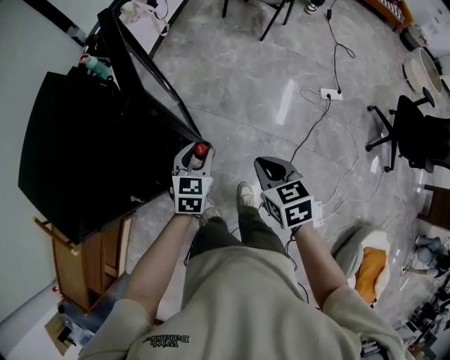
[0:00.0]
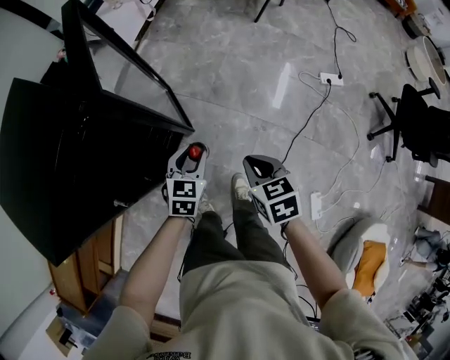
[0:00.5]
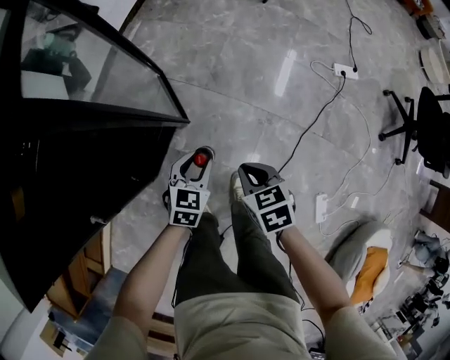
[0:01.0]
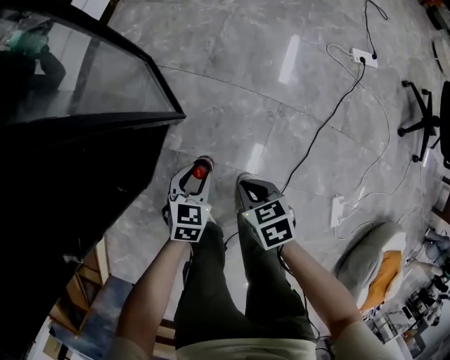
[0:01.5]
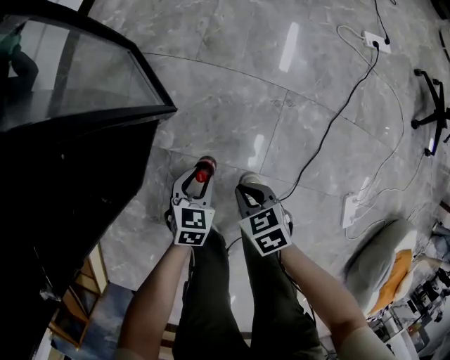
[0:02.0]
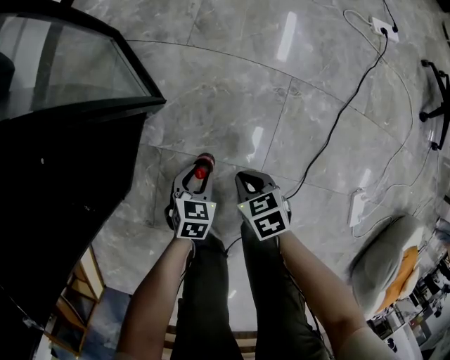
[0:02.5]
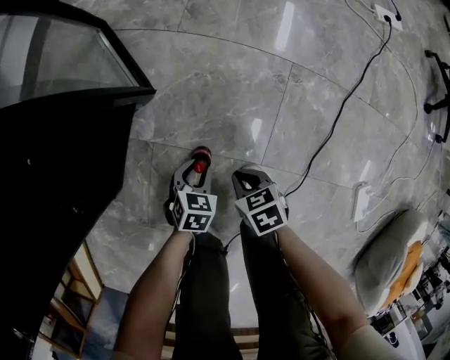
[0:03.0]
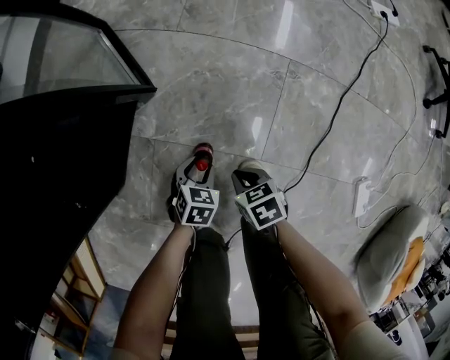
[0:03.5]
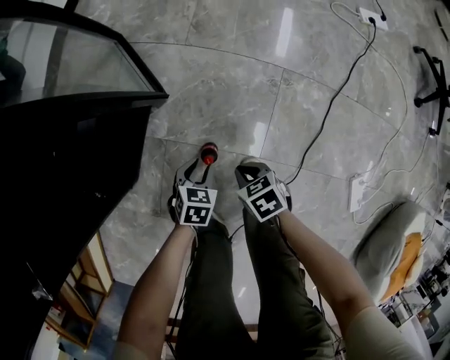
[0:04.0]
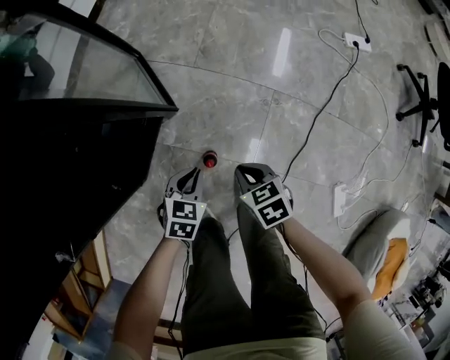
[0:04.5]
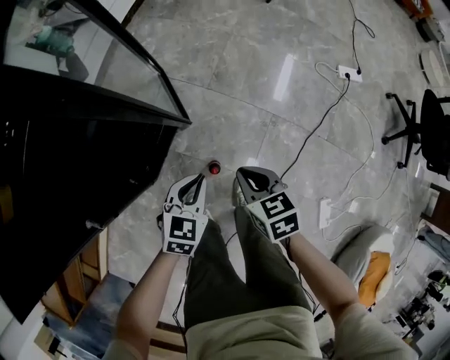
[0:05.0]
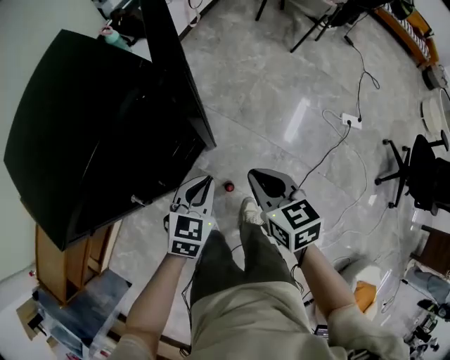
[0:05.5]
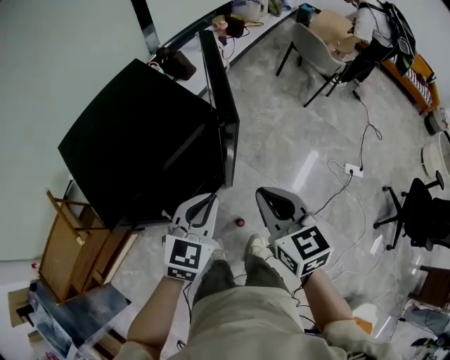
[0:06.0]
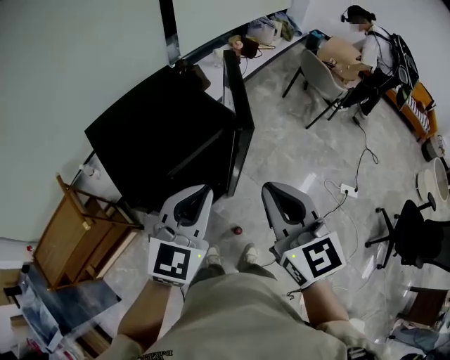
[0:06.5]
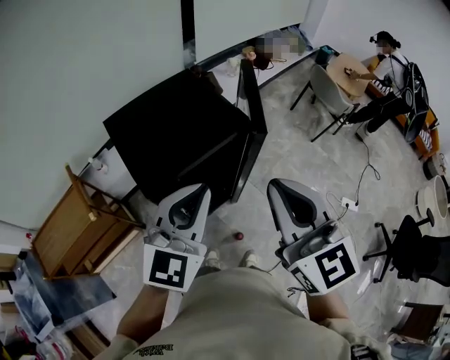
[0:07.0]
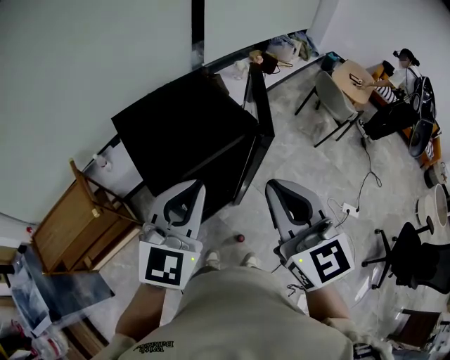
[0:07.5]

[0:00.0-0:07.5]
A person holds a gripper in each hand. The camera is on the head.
0:00.0 to 0:02.0: Both grippers travel together downward, approximately 60 cm. The left gripper rotates approximately 20 degrees.
0:02.0 to 0:04.0: The left gripper moves downward and backward, about 10 cm. The right gripper shifts roughly 10 cm downward.
0:04.0 to 0:05.5: The two grippers go some 60 cm upward. The left gripper changes its angle by roughly 30 degrees, and closes, while the right gripper rotates about 30 degrees.
0:05.5 to 0:07.5: Both grippers move upward and to the left, some 40 cm. The right gripper angles its fingers upward, by some 30 degrees. Meanwhile the left gripper points its fingers approximately 30 degrees further upward.

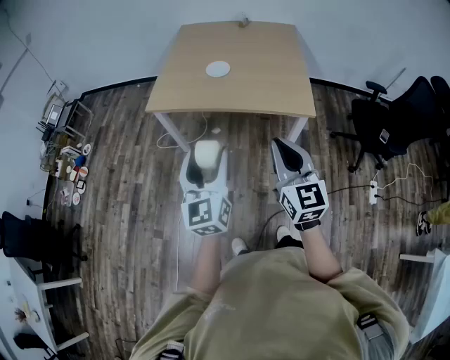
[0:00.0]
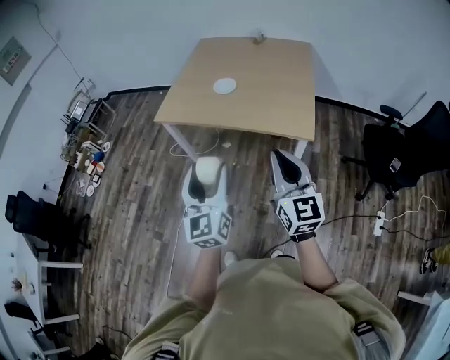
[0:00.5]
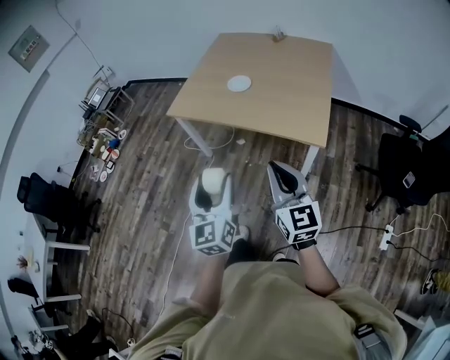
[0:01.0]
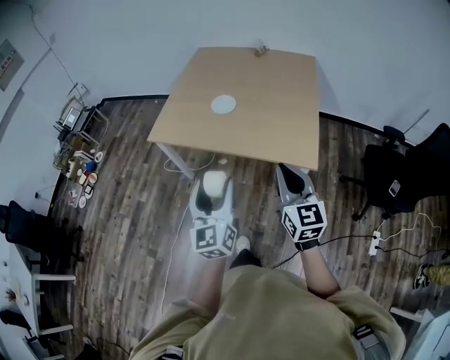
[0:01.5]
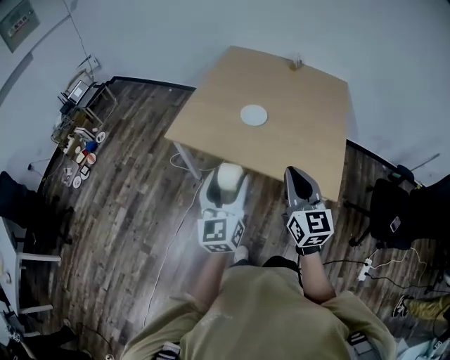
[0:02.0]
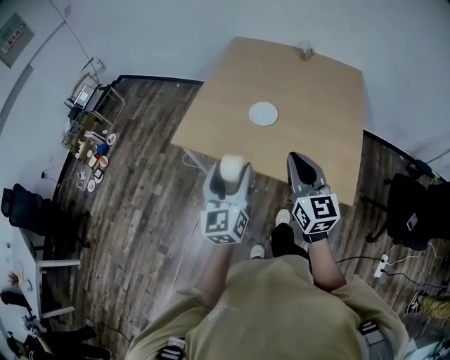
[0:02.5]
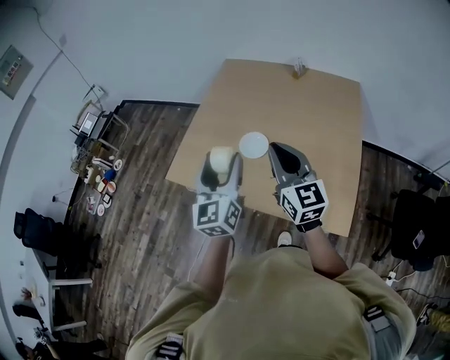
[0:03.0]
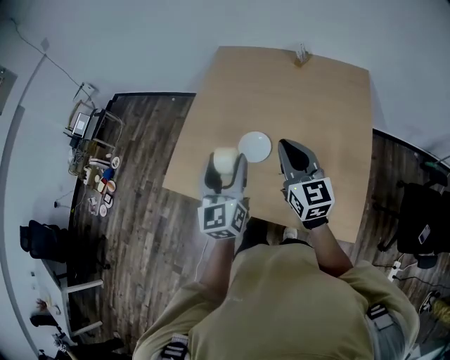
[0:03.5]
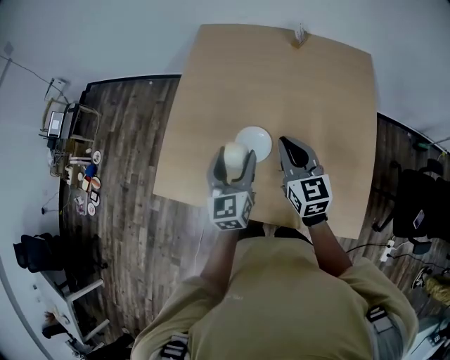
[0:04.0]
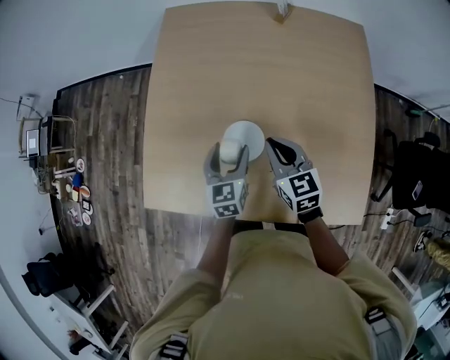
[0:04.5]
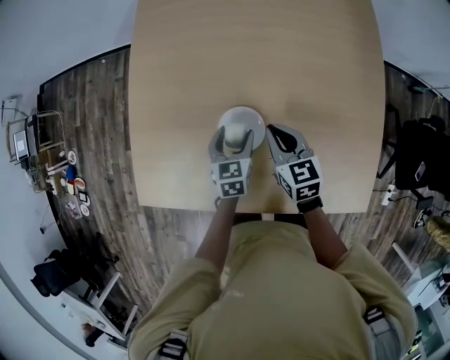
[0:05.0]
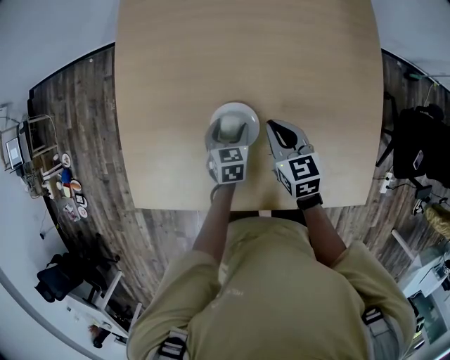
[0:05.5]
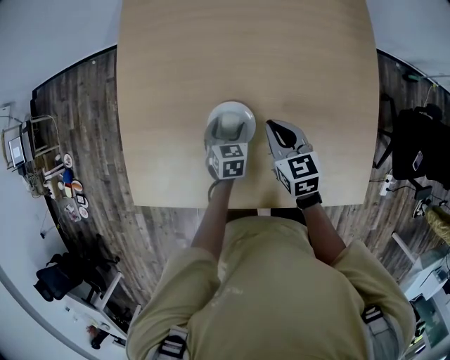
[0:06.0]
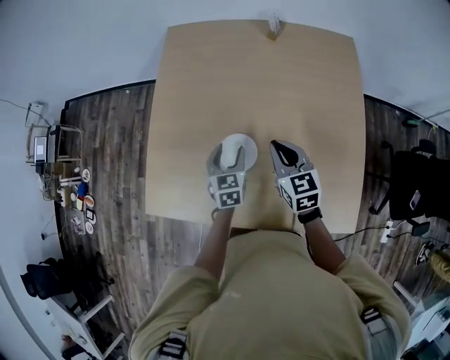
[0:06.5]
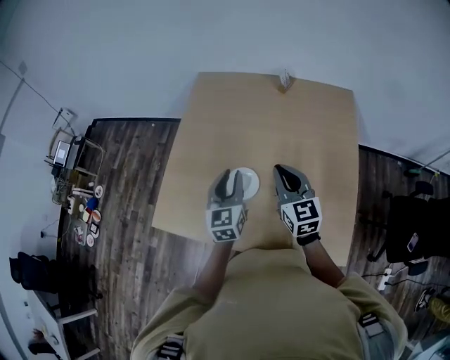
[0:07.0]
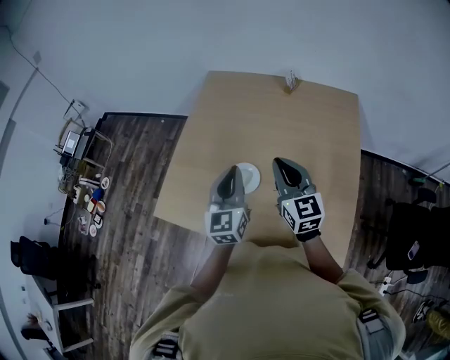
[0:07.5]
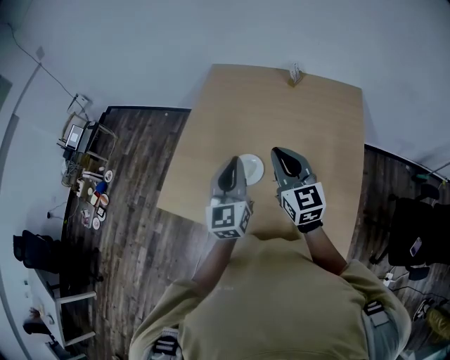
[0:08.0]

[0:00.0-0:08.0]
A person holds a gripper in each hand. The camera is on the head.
0:00.0 to 0:02.0: Both grippers move forward, roughly 25 cm.
0:02.0 to 0:04.0: The pair of grippers is taken forward, about 50 cm.
0:04.0 to 0:06.0: The right gripper travels downward by approximately 20 cm, and turns by roughly 20 degrees, while the left gripper heads downward, covering approximately 30 cm, and points its fingers roughly 40 degrees further downward.
0:06.0 to 0:08.0: The grippers both shift upward by approximately 35 cm. The right gripper tips its fingers upward by some 30 degrees. The left gripper tilts its fingers some 50 degrees upward, and closes.

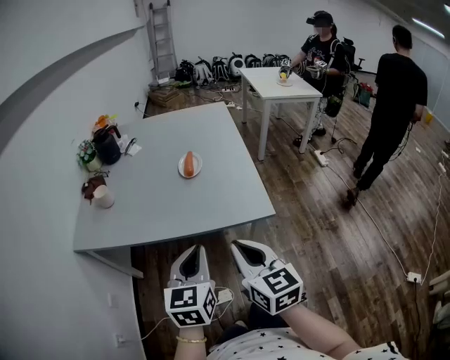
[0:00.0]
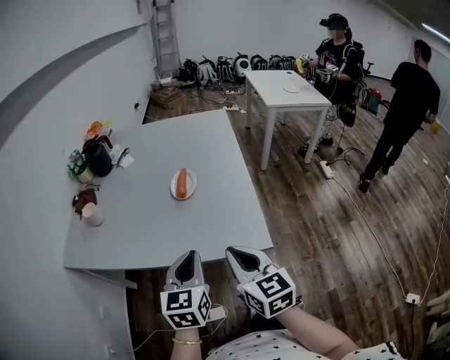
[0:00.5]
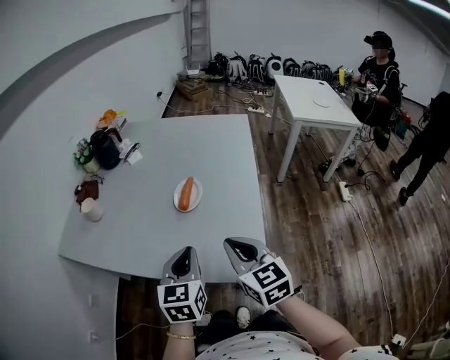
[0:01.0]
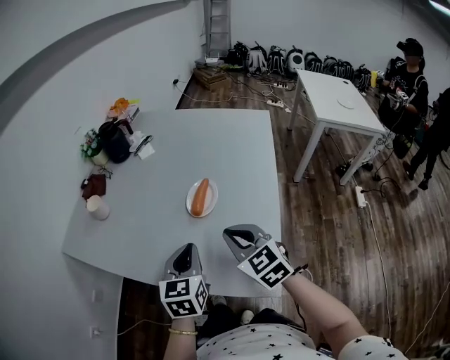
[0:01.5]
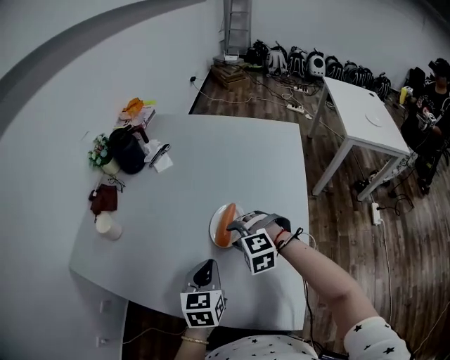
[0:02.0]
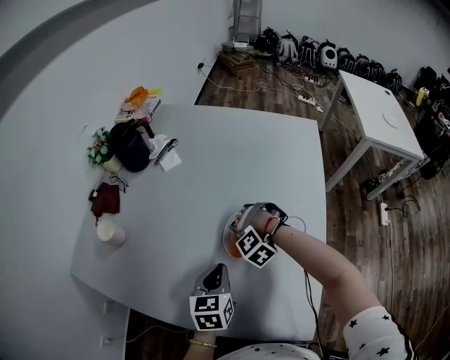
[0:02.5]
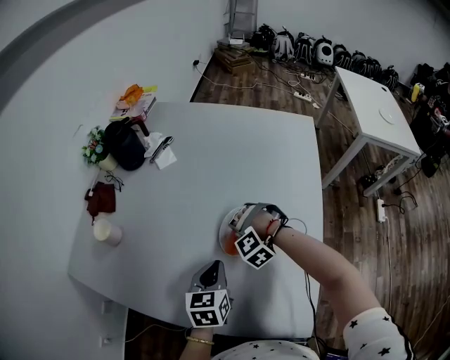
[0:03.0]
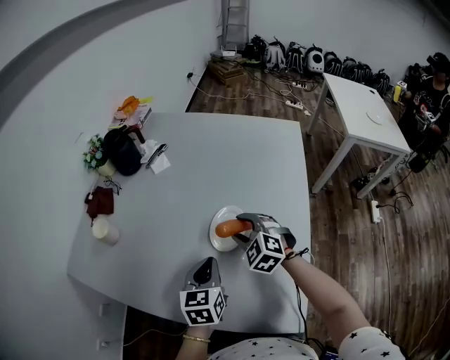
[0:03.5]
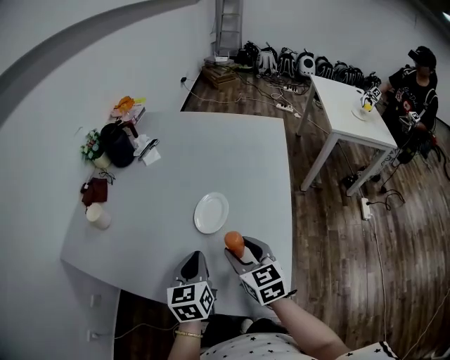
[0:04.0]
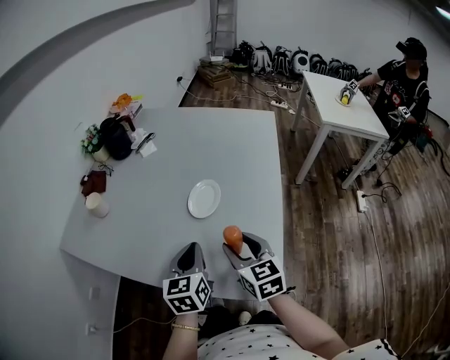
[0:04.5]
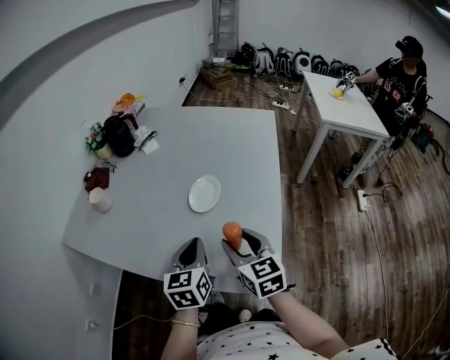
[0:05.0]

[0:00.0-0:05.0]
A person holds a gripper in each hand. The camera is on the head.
0:00.0 to 0:02.5: The pair of grippers is taken some 50 cm. The left gripper changes its angle by some 30 degrees; the right gripper twists about 120 degrees counterclockwise, seen from behind, and opens up.
0:02.5 to 0:05.0: The left gripper moves about 15 cm. Meanwhile the right gripper changes place by about 30 cm, and rotates around the line of its fingers by about 110 degrees, clockwise from behind.

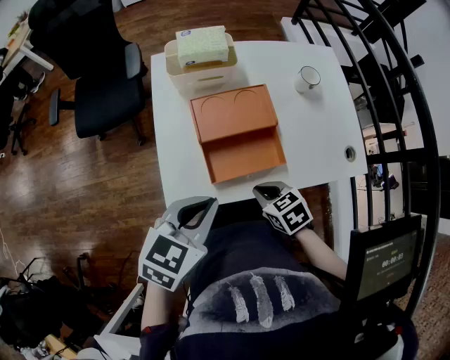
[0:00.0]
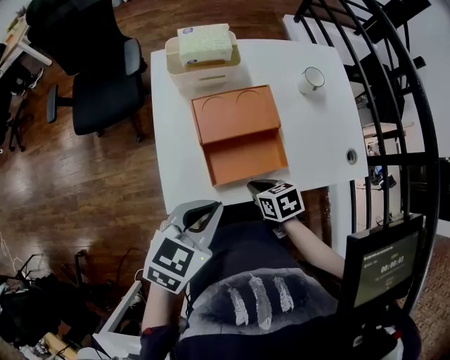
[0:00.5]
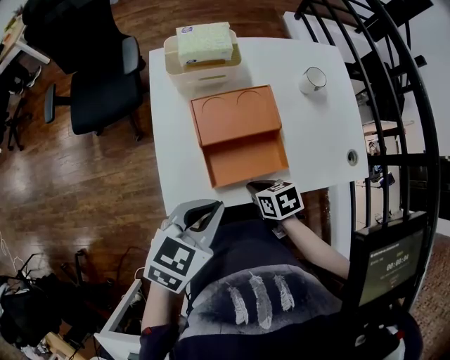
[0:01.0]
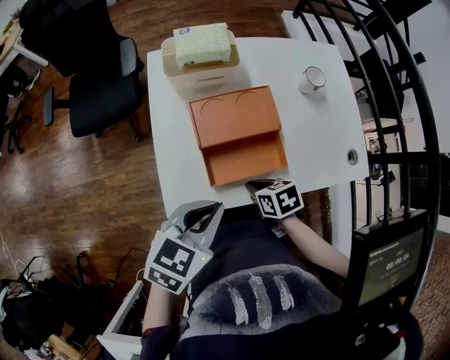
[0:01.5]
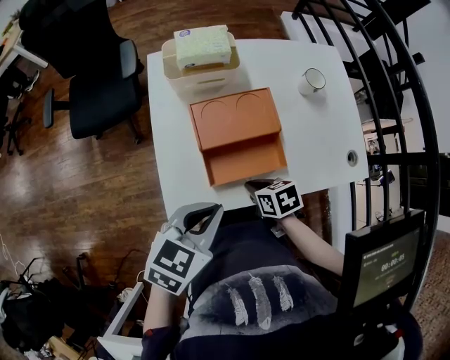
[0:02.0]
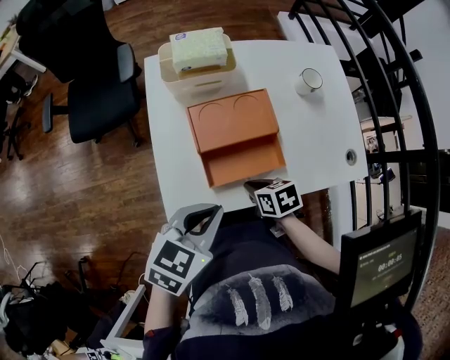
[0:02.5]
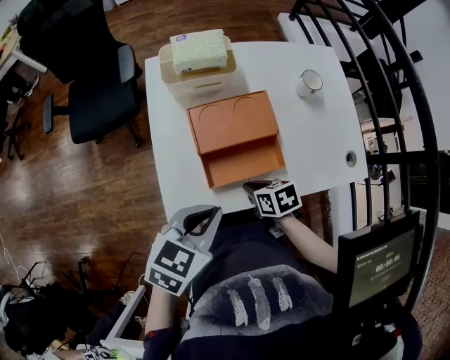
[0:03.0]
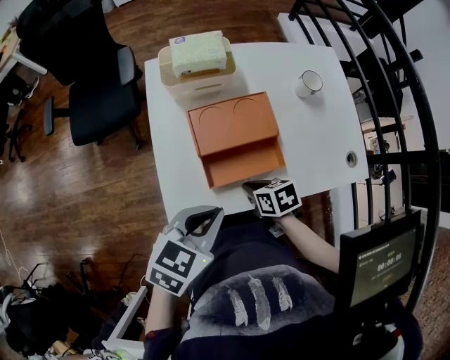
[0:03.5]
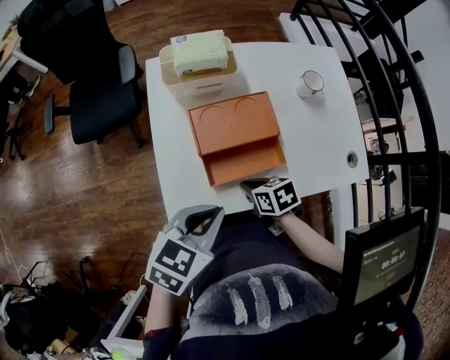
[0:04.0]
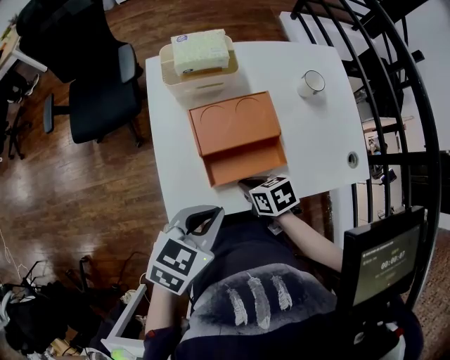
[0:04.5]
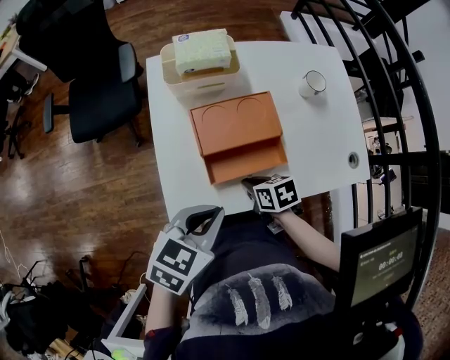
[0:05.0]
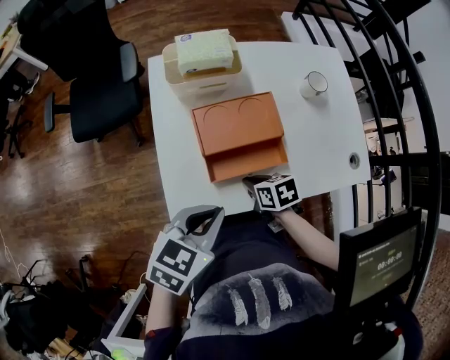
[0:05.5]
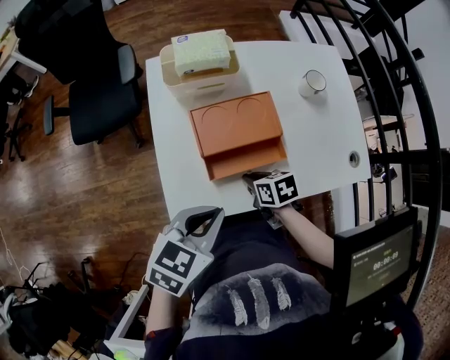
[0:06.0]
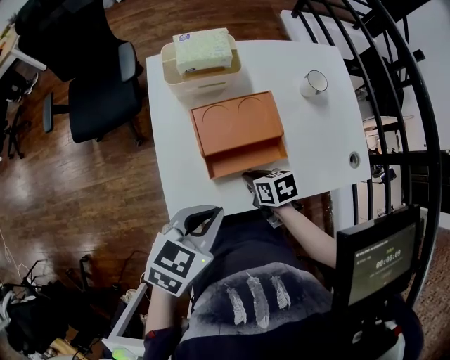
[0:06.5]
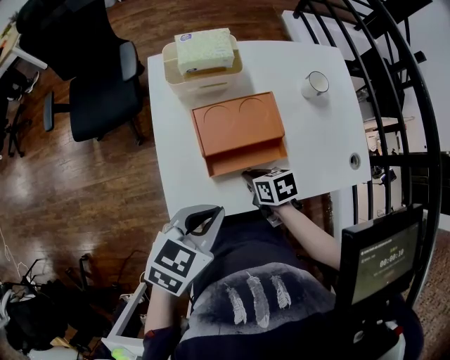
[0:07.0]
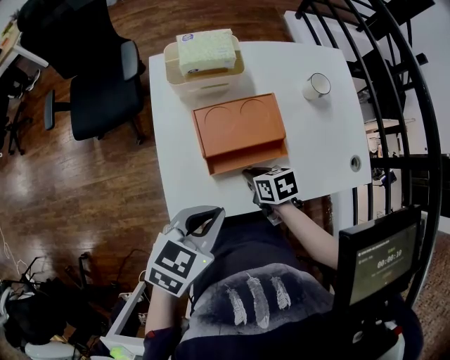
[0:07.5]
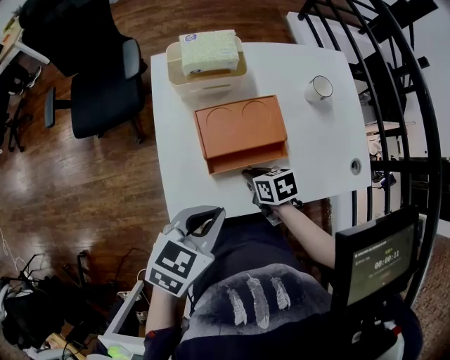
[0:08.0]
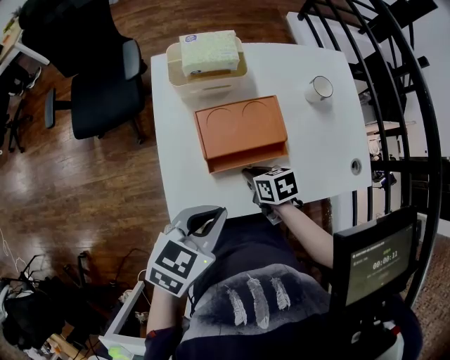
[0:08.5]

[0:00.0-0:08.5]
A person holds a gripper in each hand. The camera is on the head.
0:00.0 to 0:02.0: The right gripper changes place by approximately 5 cm, and rotates roughly 20 degrees.
0:02.0 to 0:06.5: There are only small adjustments of the grippers.
0:06.5 to 0:08.5: The grippers move only a little.
